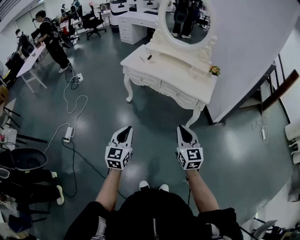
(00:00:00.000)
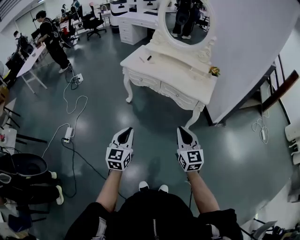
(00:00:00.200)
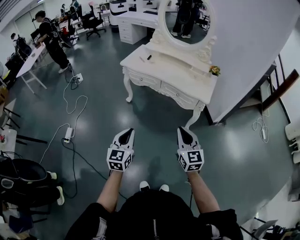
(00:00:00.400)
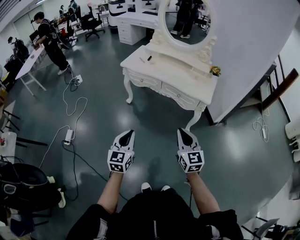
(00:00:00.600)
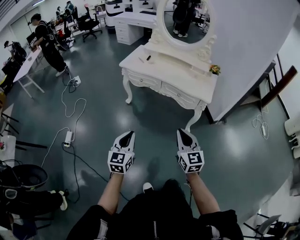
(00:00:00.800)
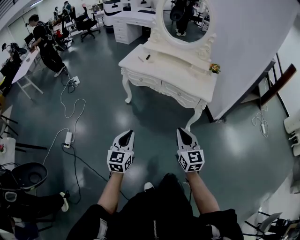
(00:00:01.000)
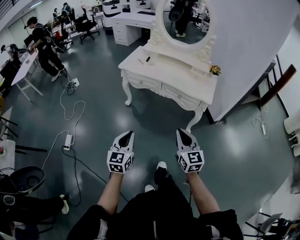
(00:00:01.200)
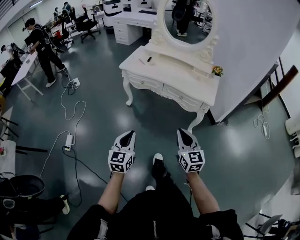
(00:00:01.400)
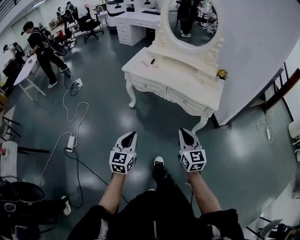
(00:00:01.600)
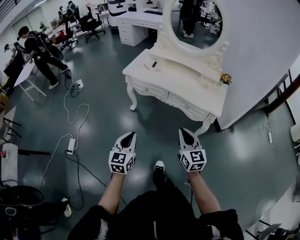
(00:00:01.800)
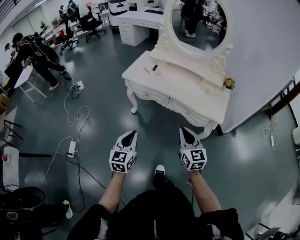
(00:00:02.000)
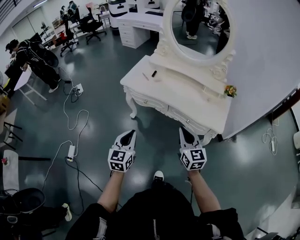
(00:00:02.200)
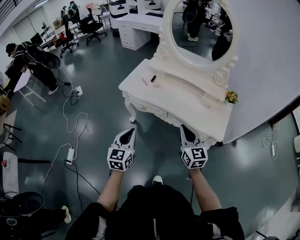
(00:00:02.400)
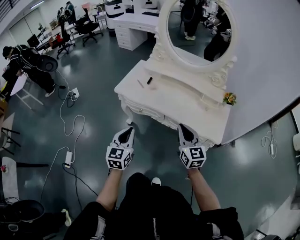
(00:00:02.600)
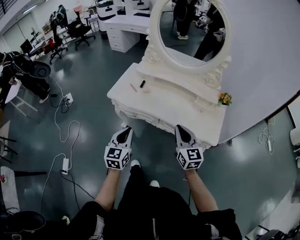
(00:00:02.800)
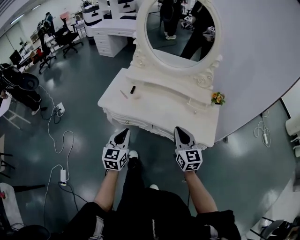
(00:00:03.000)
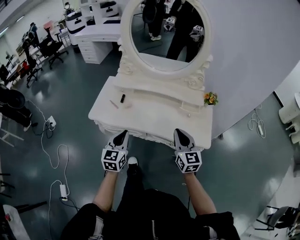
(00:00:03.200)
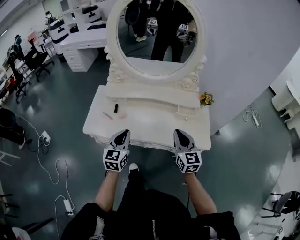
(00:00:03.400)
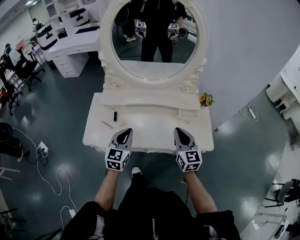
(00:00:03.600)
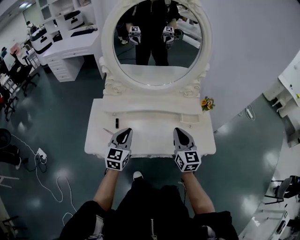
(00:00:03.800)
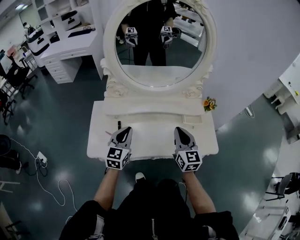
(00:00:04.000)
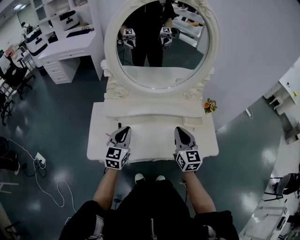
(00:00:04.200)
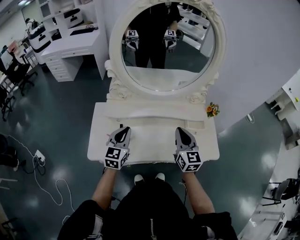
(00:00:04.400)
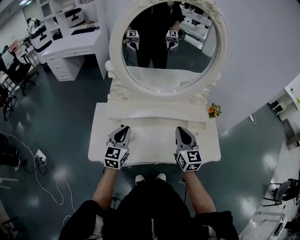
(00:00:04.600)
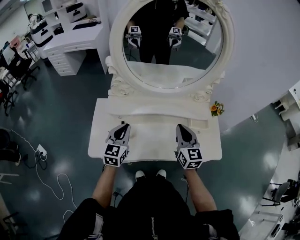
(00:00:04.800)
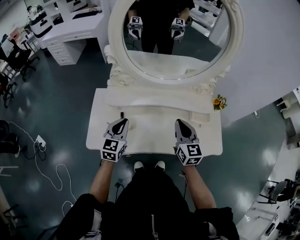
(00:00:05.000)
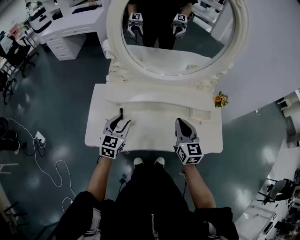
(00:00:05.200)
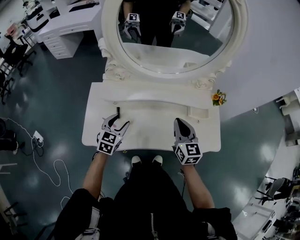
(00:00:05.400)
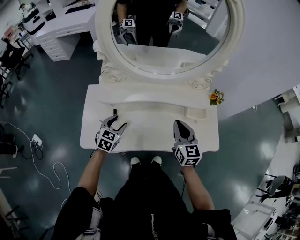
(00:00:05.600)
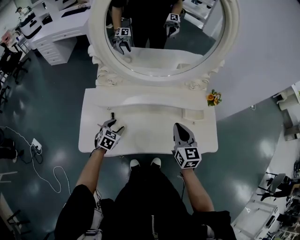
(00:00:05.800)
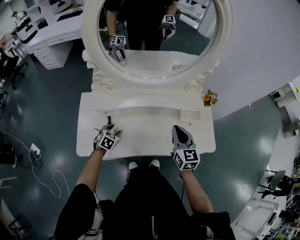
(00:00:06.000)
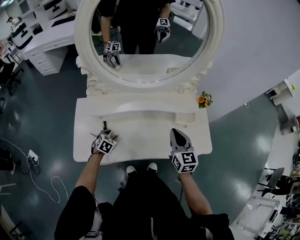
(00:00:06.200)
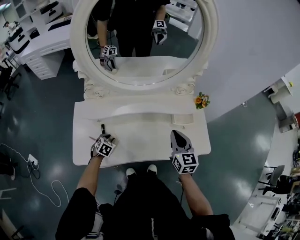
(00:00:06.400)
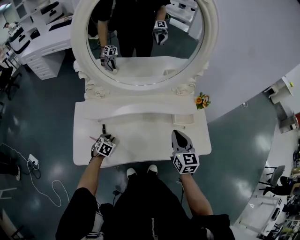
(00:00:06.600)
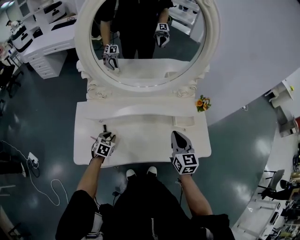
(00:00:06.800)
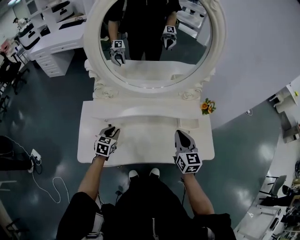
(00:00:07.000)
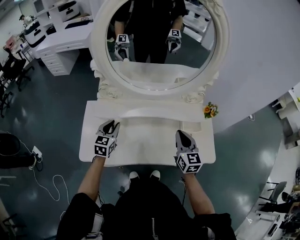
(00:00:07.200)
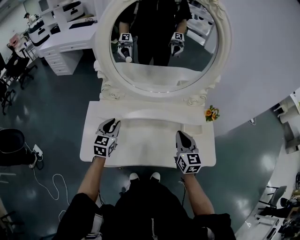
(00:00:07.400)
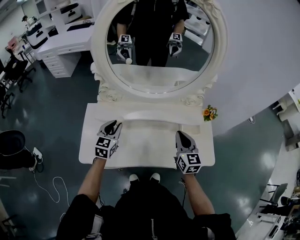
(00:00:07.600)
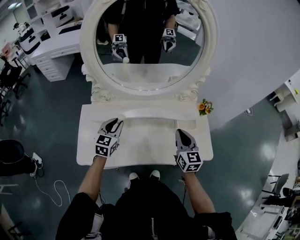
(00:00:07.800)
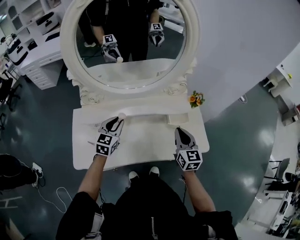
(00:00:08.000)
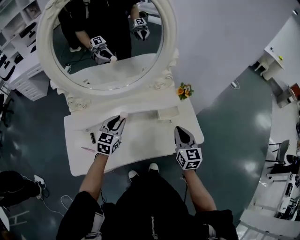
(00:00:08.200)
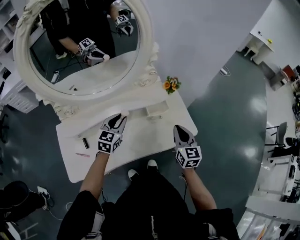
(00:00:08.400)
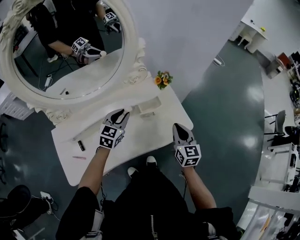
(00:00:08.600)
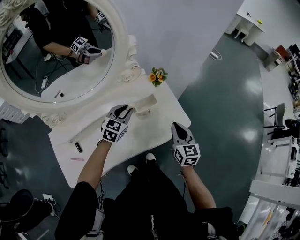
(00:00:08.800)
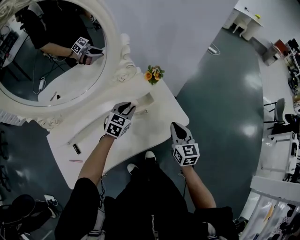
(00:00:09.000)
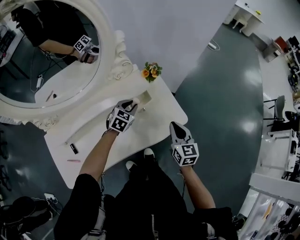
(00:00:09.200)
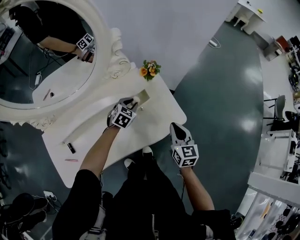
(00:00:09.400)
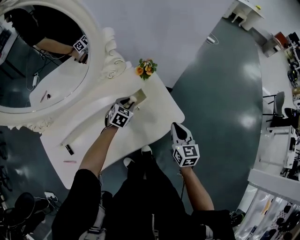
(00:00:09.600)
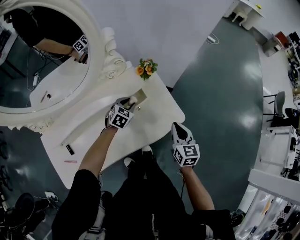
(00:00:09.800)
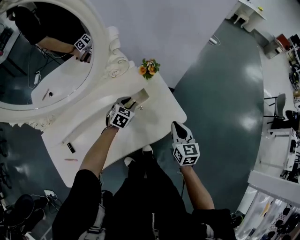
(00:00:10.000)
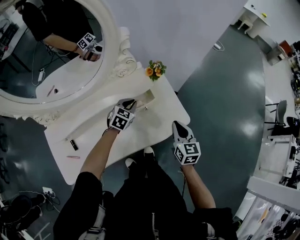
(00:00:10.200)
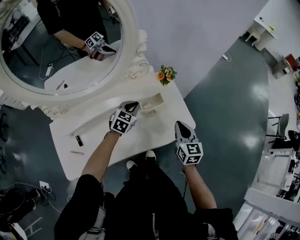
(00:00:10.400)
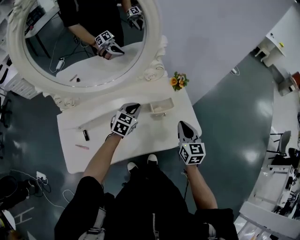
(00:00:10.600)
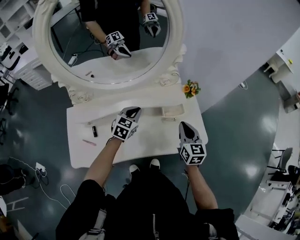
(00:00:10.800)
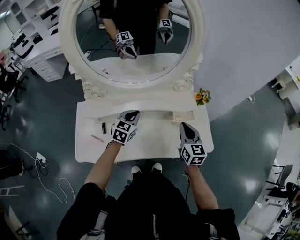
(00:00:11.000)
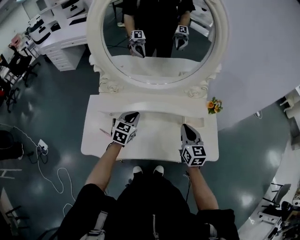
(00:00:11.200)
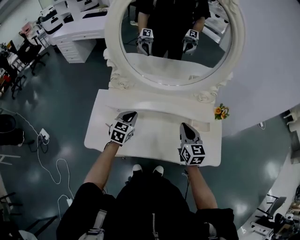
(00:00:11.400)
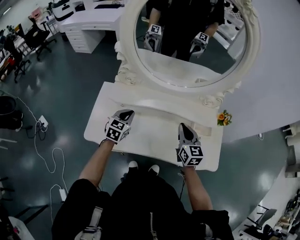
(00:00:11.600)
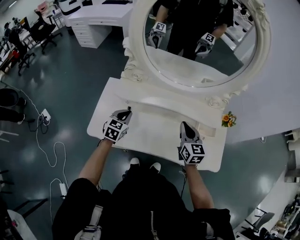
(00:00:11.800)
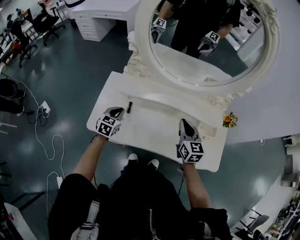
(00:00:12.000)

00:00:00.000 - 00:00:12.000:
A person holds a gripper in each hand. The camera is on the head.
00:00:00.000 - 00:00:01.600: The grippers both shift forward by roughly 10 cm.
00:00:01.600 - 00:00:03.000: The two grippers go roughly 35 cm forward.
00:00:03.000 - 00:00:04.400: The right gripper shifts by approximately 25 cm, and rotates approximately 30 degrees, while the left gripper changes place by about 35 cm, and swivels some 30 degrees.
00:00:04.400 - 00:00:06.000: The right gripper goes approximately 5 cm downward; the left gripper heads downward, covering roughly 25 cm, tilts its fingers some 40 degrees downward, and opens up.
00:00:06.000 - 00:00:07.600: The left gripper is displaced upward by about 20 cm, points its fingers about 30 degrees further upward, and closes its fingers.
00:00:07.600 - 00:00:09.000: The right gripper changes place by some 25 cm, and rotates some 30 degrees, while the left gripper moves approximately 40 cm, and changes its angle by approximately 40 degrees.
00:00:09.000 - 00:00:10.400: The left gripper travels downward and back again, some 10 cm each way.
00:00:10.400 - 00:00:12.000: The right gripper shifts by roughly 30 cm, and changes its angle by approximately 40 degrees; the left gripper changes place by some 50 cm, and turns by about 50 degrees.

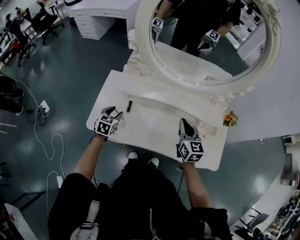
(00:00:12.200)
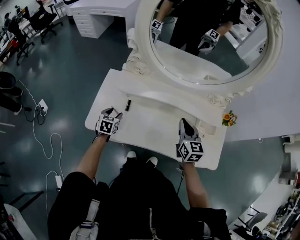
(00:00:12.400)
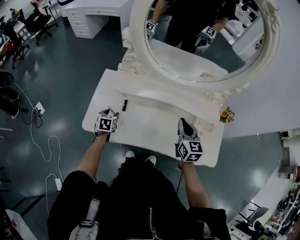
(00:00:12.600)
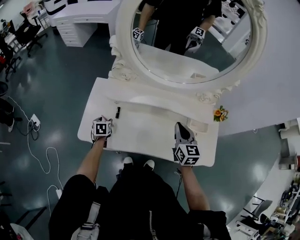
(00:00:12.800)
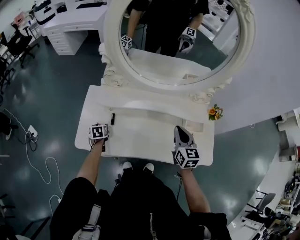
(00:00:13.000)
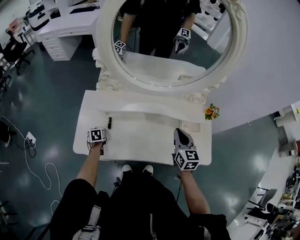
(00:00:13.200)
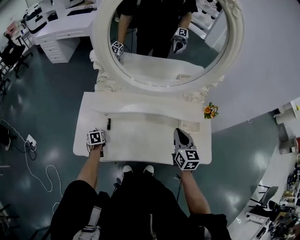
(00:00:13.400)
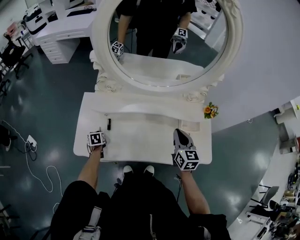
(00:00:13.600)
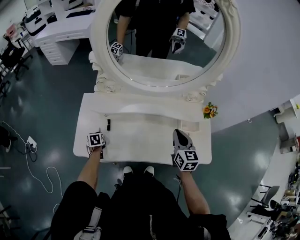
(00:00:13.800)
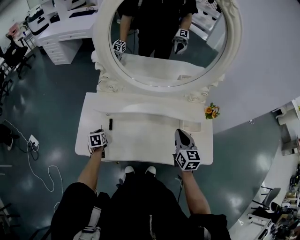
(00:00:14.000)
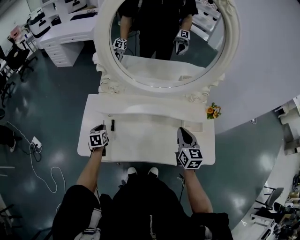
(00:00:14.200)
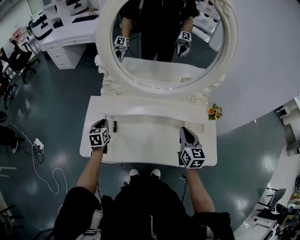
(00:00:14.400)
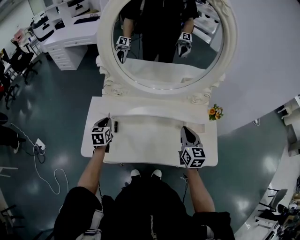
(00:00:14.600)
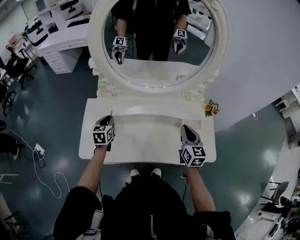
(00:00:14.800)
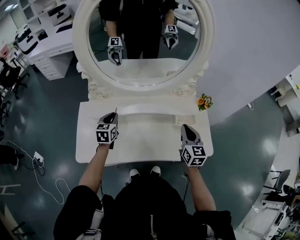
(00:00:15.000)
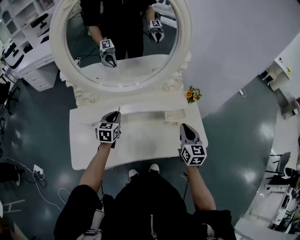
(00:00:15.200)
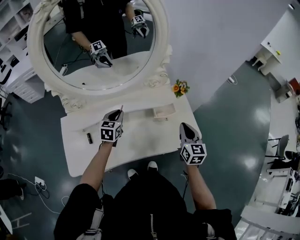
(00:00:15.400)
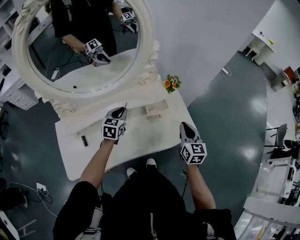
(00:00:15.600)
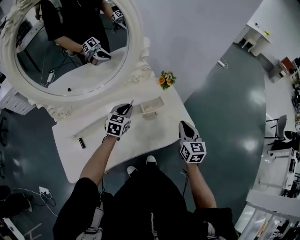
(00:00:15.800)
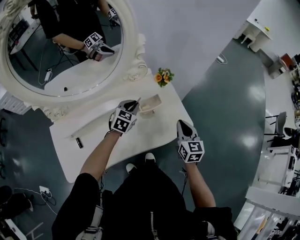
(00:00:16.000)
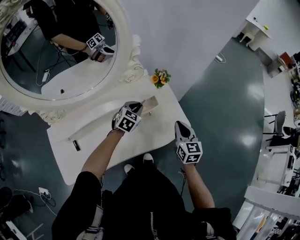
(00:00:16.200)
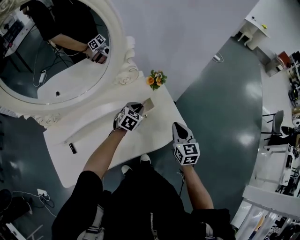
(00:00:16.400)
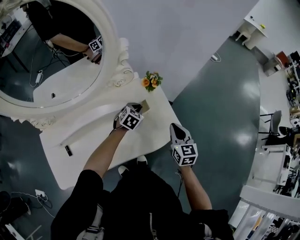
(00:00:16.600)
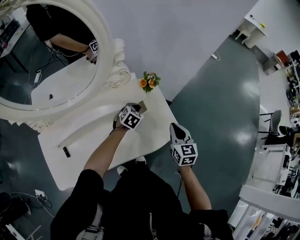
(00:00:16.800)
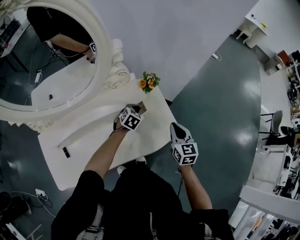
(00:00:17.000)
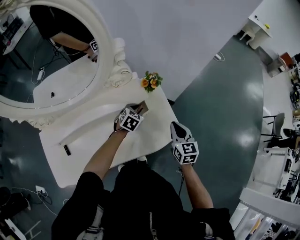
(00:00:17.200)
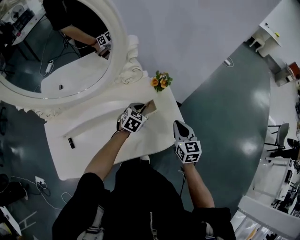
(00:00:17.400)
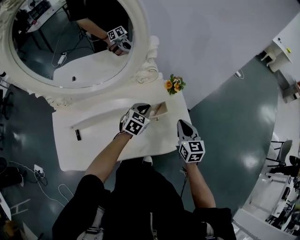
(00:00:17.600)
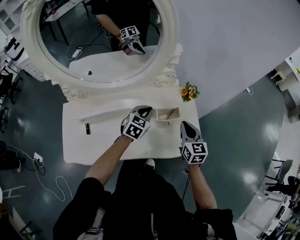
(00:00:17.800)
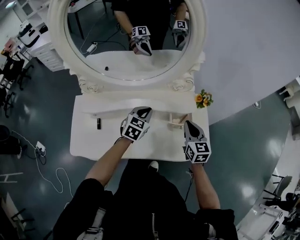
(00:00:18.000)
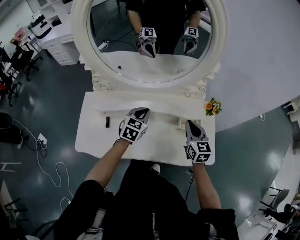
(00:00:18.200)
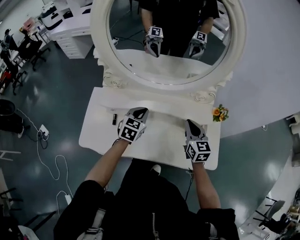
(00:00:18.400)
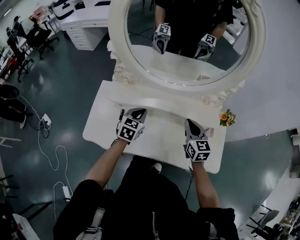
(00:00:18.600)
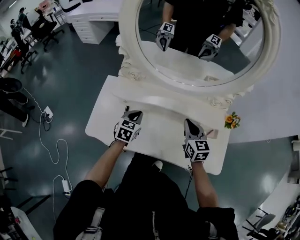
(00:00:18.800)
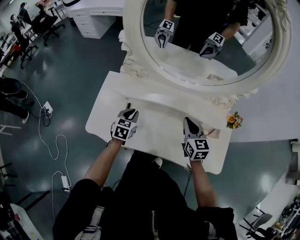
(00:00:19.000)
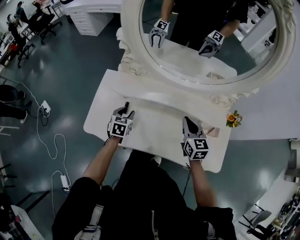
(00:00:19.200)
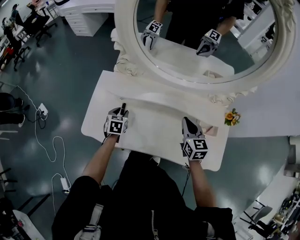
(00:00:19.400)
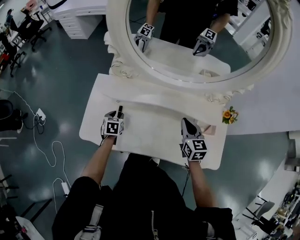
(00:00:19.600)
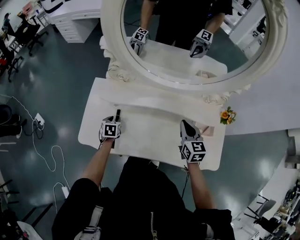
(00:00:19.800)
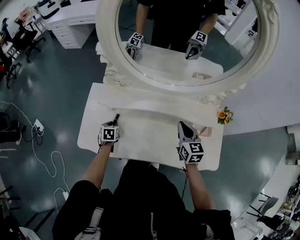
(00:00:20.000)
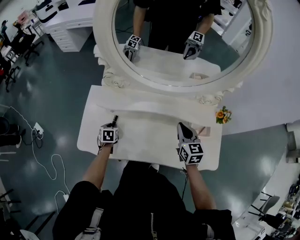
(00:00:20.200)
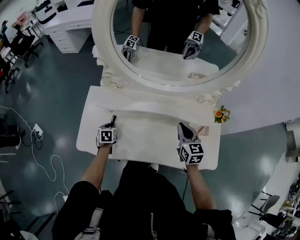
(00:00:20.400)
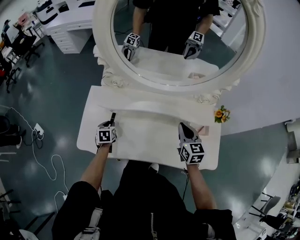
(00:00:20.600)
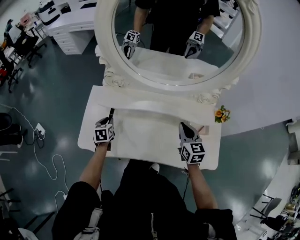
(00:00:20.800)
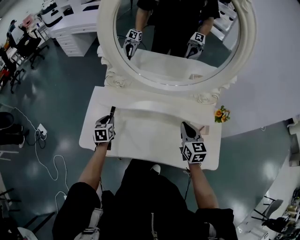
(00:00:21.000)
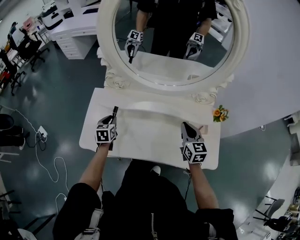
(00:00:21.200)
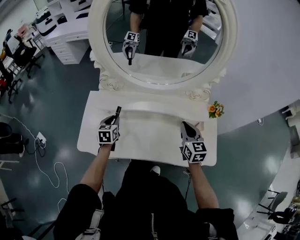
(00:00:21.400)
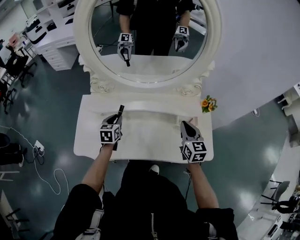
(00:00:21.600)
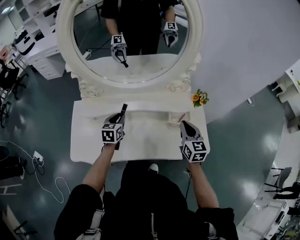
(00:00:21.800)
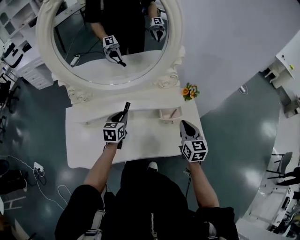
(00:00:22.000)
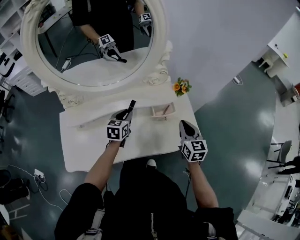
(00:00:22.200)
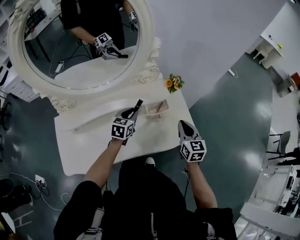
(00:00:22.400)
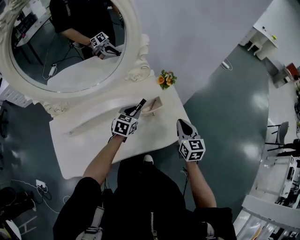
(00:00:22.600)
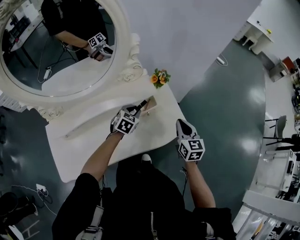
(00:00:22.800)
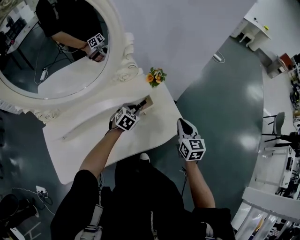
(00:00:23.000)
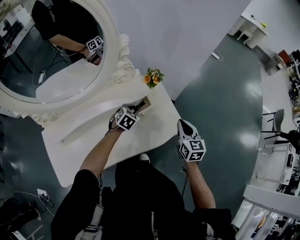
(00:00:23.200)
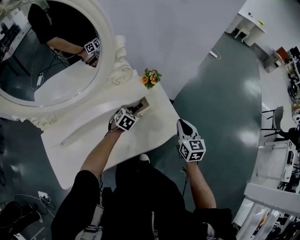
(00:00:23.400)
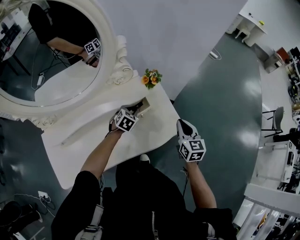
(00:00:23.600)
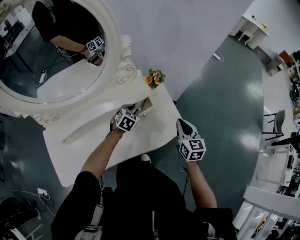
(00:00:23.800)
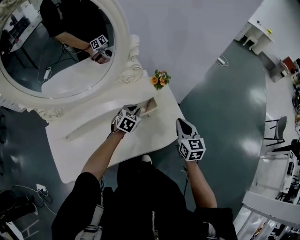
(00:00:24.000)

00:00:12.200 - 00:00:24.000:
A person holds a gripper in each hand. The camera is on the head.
00:00:12.200 - 00:00:13.600: The left gripper travels downward by some 10 cm, swivels some 30 degrees, and closes its fingers; the right gripper travels to the right by some 5 cm.
00:00:13.600 - 00:00:15.200: The left gripper is displaced to the right and upward by about 30 cm, and rotates approximately 40 degrees. The right gripper travels to the right and backward by about 15 cm.
00:00:15.200 - 00:00:16.600: The left gripper is displaced to the right and forward by roughly 35 cm, and changes its angle by about 40 degrees. Meanwhile the right gripper heads to the right, covering about 15 cm.
00:00:16.600 - 00:00:18.200: The right gripper ends up some 20 cm from where it was, and turns by approximately 30 degrees. Meanwhile the left gripper shifts by some 30 cm, and turns by roughly 40 degrees.
00:00:18.200 - 00:00:19.600: The left gripper moves to the left and downward, about 35 cm, turns by some 40 degrees, and opens up. Meanwhile the right gripper goes roughly 15 cm to the left.
00:00:19.600 - 00:00:21.000: The left gripper shifts some 10 cm upward.
00:00:21.000 - 00:00:22.600: The right gripper ends up some 25 cm from where it was, and rotates about 30 degrees. Meanwhile the left gripper ends up about 50 cm from where it was, and changes its angle by some 60 degrees.
